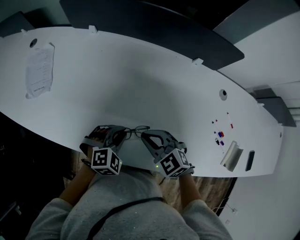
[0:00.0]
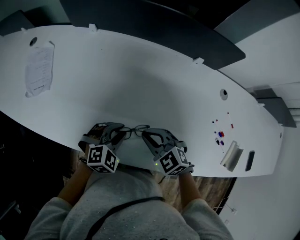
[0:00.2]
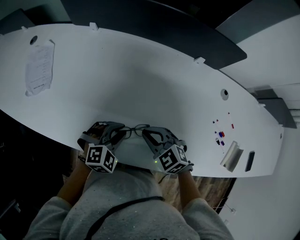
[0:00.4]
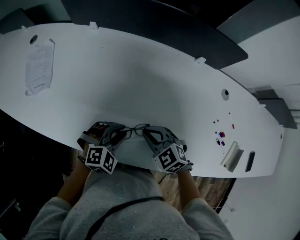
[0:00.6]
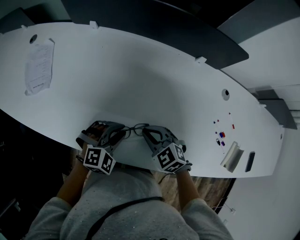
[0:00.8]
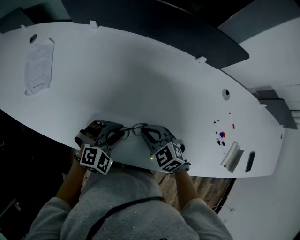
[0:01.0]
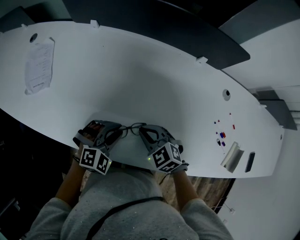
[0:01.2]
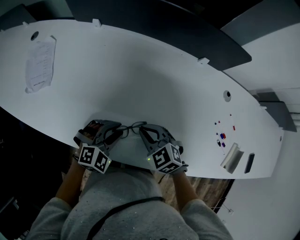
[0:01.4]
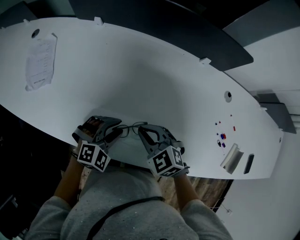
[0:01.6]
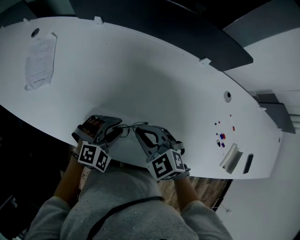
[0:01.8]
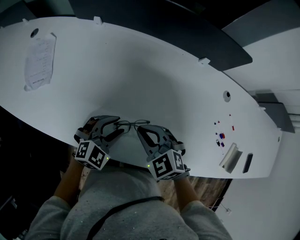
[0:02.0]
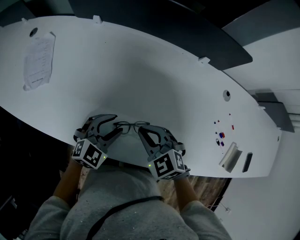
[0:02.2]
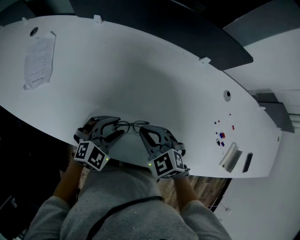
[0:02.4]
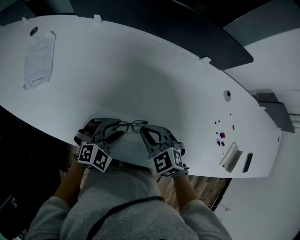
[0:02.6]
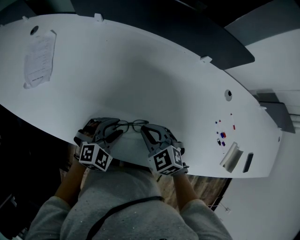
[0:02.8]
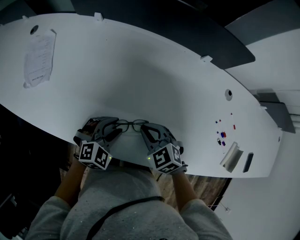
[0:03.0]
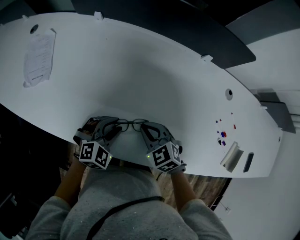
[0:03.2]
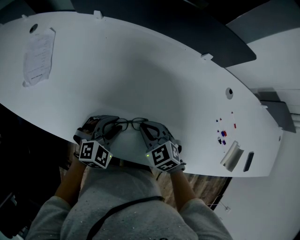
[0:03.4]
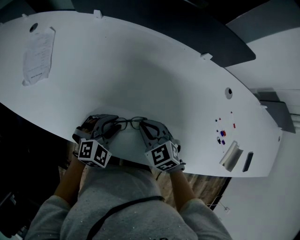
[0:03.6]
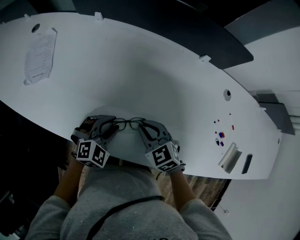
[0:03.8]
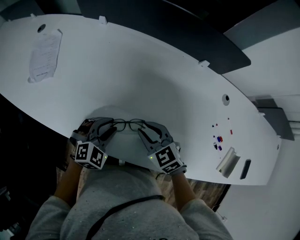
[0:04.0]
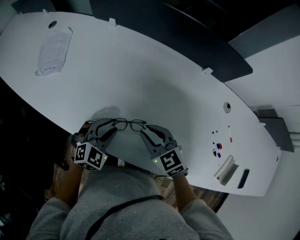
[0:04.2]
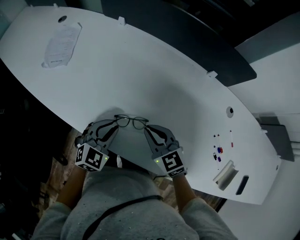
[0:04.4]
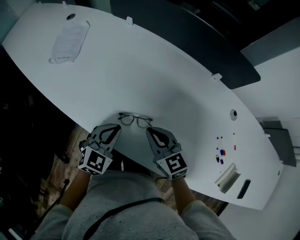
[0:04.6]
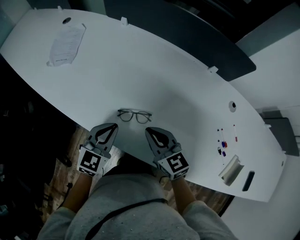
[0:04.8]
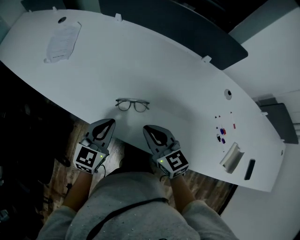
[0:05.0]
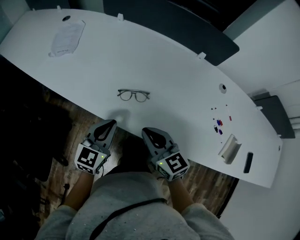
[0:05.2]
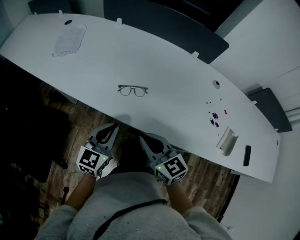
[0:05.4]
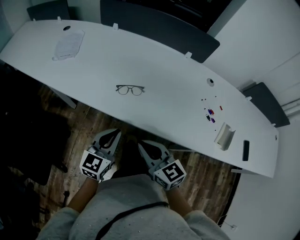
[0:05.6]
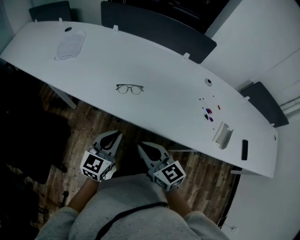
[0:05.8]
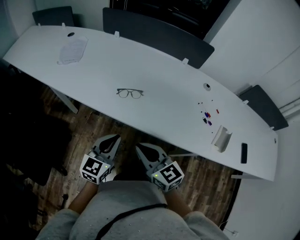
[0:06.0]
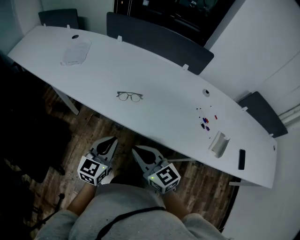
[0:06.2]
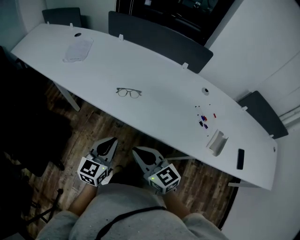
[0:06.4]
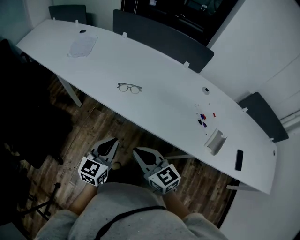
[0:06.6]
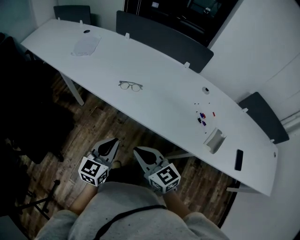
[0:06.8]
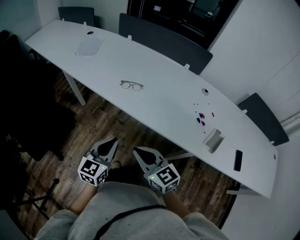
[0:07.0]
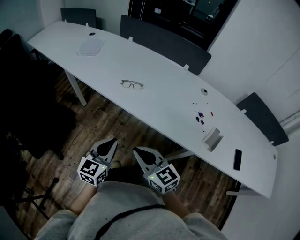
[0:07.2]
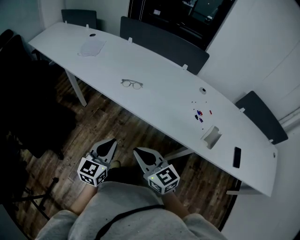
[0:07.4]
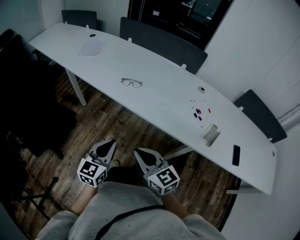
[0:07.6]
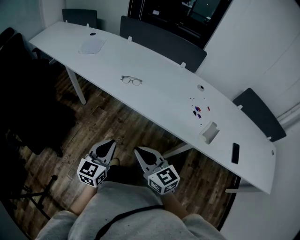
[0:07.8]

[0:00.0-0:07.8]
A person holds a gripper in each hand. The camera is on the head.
0:00.0 to 0:01.6: The left gripper opens up.
0:03.2 to 0:04.6: The left gripper travels upward and backward by roughly 10 cm, turns by approximately 30 degrees, and closes. Meanwhile the right gripper goes about 5 cm upward, and turns by about 30 degrees.
0:04.6 to 0:06.2: Both grippers travel together backward, roughly 30 cm. The left gripper turns by about 30 degrees.
0:06.2 to 0:07.8: Both grippers travel together backward, approximately 20 cm.

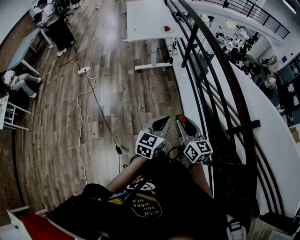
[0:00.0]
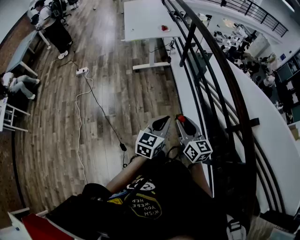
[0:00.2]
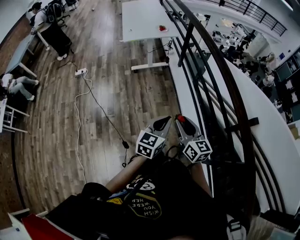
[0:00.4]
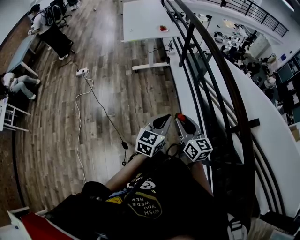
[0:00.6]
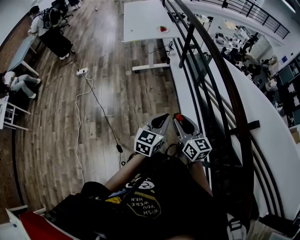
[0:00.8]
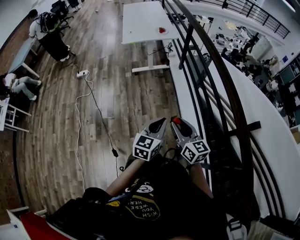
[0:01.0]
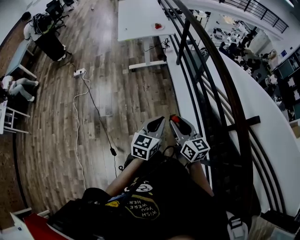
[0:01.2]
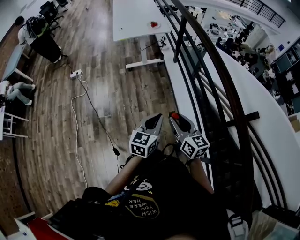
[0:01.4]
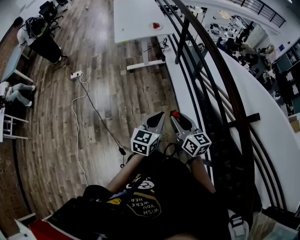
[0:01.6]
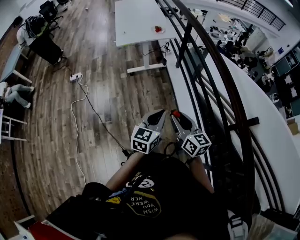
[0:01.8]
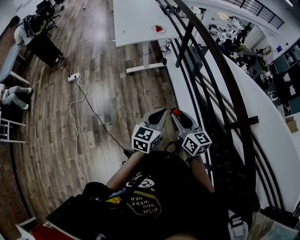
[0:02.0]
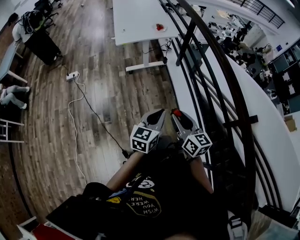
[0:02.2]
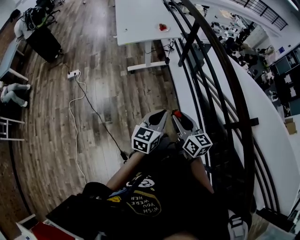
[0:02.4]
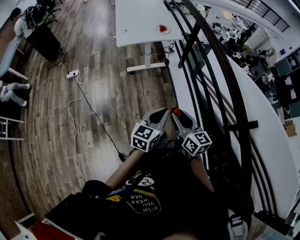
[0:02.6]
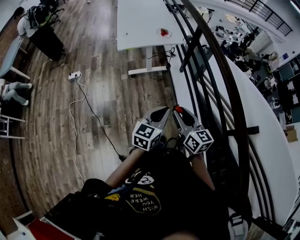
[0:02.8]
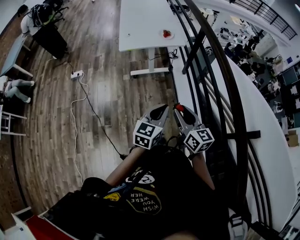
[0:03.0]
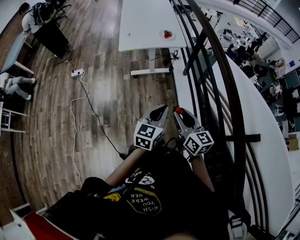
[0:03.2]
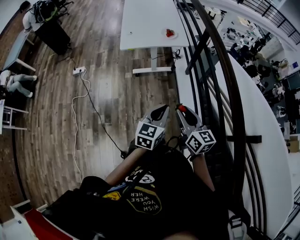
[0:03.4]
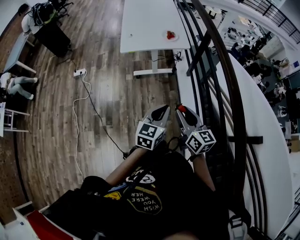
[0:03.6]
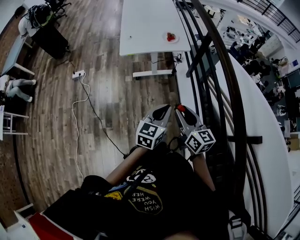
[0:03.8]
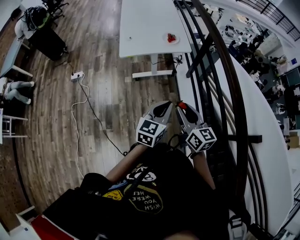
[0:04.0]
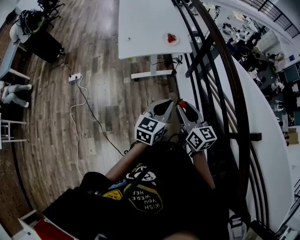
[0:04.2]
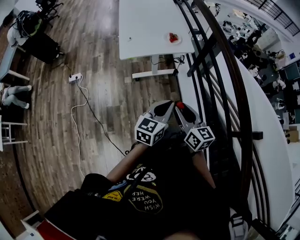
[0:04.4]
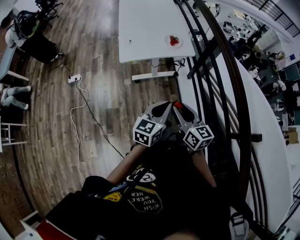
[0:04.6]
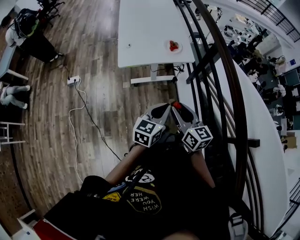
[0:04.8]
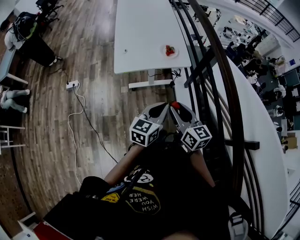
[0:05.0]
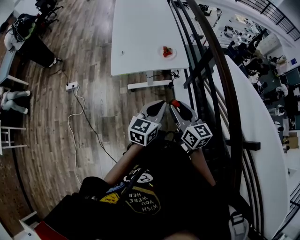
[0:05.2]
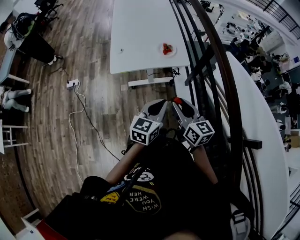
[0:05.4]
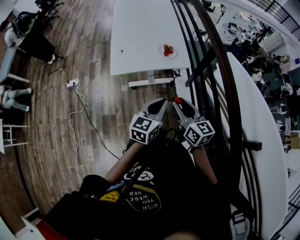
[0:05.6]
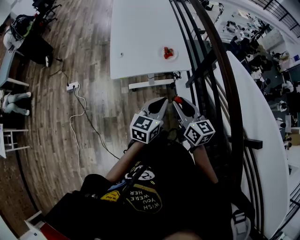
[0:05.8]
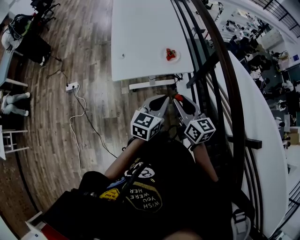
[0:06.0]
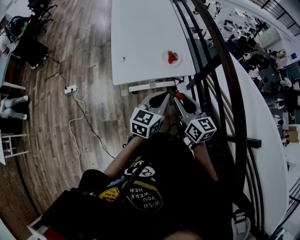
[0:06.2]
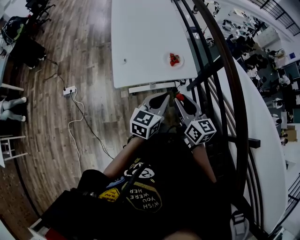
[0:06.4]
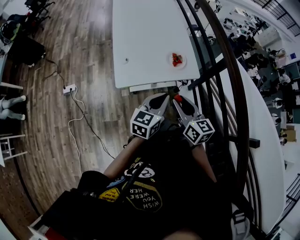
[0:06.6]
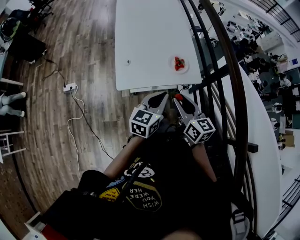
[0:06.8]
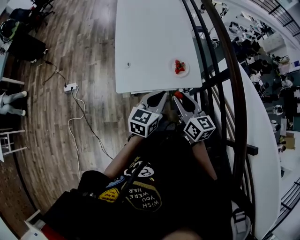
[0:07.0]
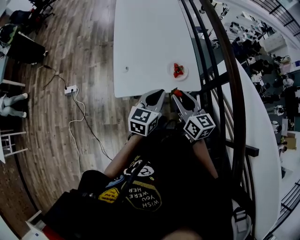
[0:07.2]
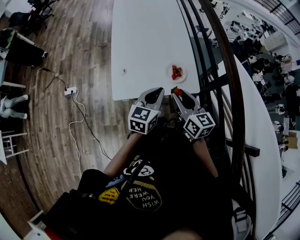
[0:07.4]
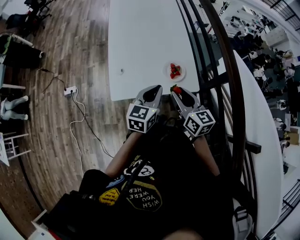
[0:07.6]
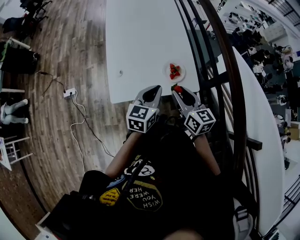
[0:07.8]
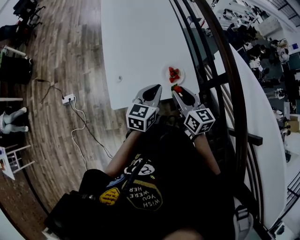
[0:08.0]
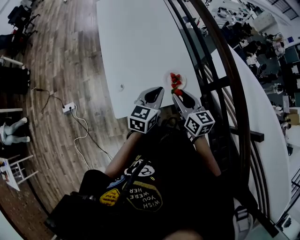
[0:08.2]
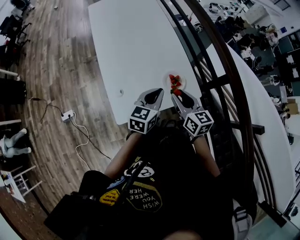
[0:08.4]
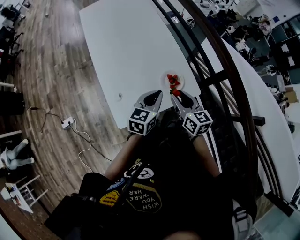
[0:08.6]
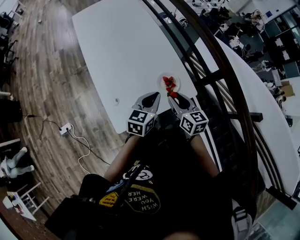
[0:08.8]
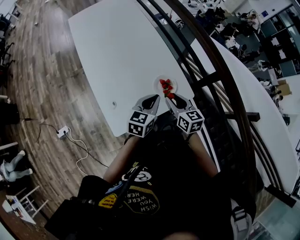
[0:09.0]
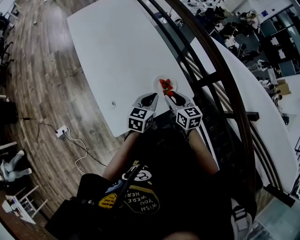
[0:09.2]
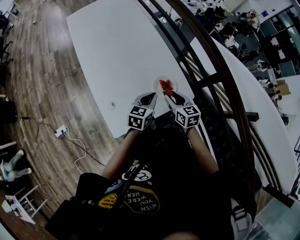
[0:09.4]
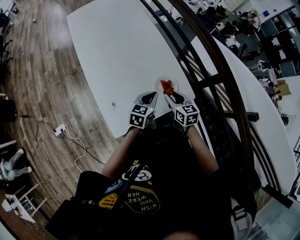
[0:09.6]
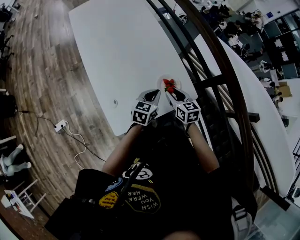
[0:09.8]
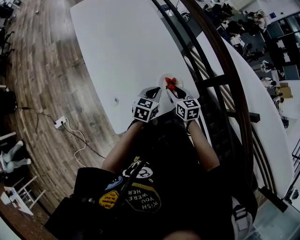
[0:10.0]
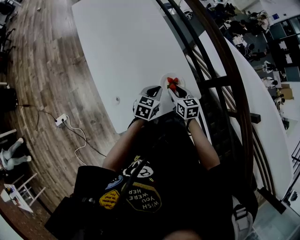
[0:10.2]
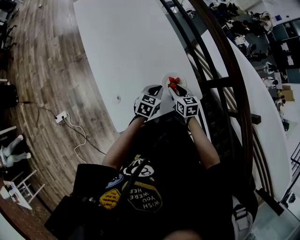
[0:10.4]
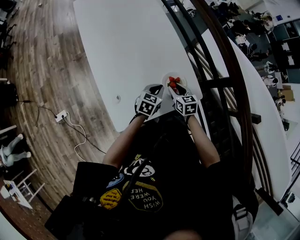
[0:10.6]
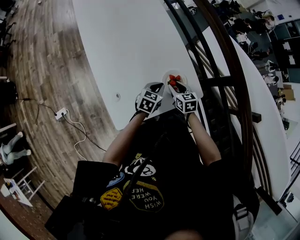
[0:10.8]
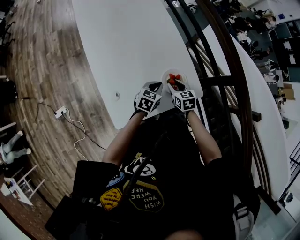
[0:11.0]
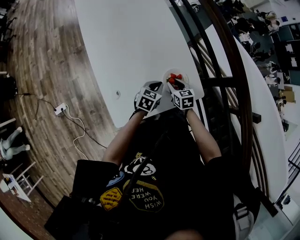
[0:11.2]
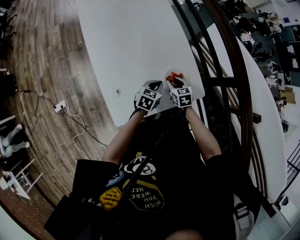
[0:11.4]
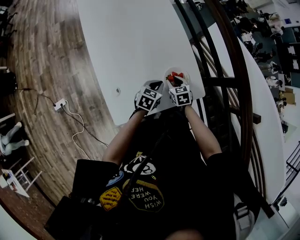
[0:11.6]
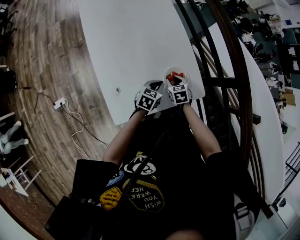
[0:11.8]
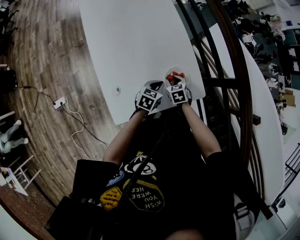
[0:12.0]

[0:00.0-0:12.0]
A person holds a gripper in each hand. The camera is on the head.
0:00.0 to 0:01.6: The two grippers go some 10 cm forward.
0:01.6 to 0:03.0: The grippers both shift forward by about 20 cm.
0:03.0 to 0:04.4: The grippers both shift forward by some 15 cm.
0:04.4 to 0:06.0: Both grippers move forward, some 20 cm.
0:06.0 to 0:07.6: The grippers both shift forward by approximately 20 cm.
0:07.6 to 0:09.0: Both grippers move forward and downward, some 10 cm. The left gripper changes its angle by roughly 20 degrees. The right gripper rotates roughly 20 degrees.
0:09.0 to 0:10.4: The left gripper goes approximately 15 cm downward. The right gripper moves downward and forward, about 15 cm.
0:10.4 to 0:12.0: The right gripper shifts some 10 cm downward, and changes its angle by some 30 degrees.

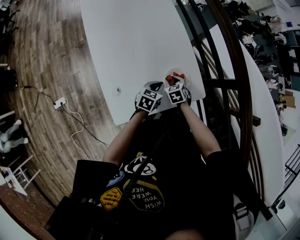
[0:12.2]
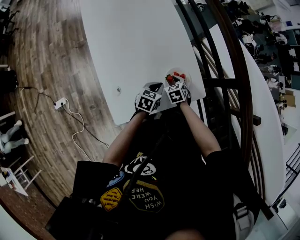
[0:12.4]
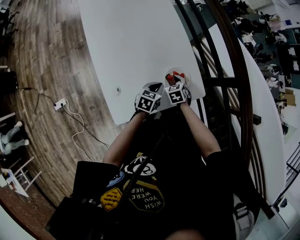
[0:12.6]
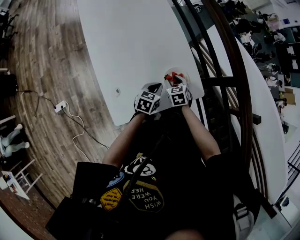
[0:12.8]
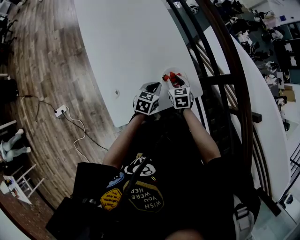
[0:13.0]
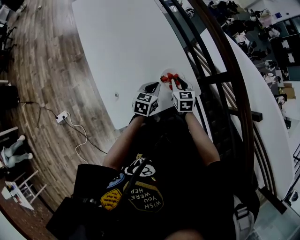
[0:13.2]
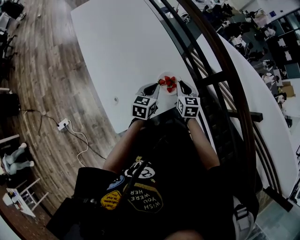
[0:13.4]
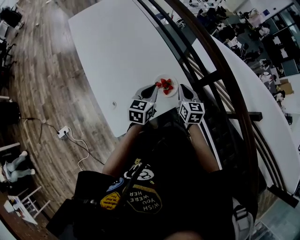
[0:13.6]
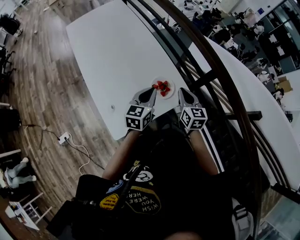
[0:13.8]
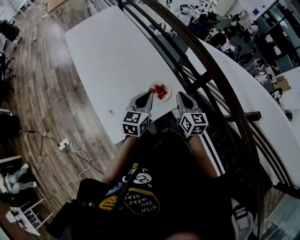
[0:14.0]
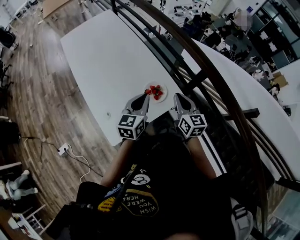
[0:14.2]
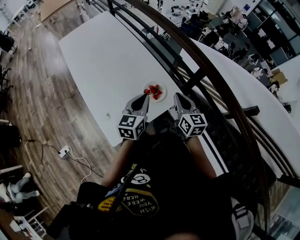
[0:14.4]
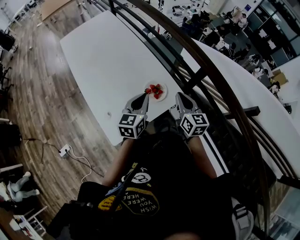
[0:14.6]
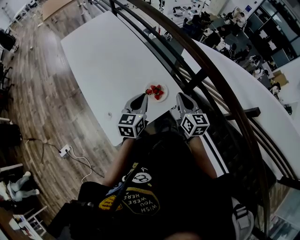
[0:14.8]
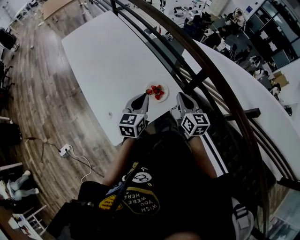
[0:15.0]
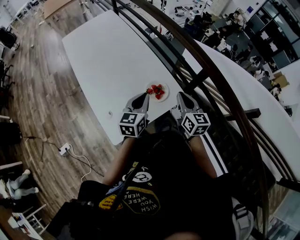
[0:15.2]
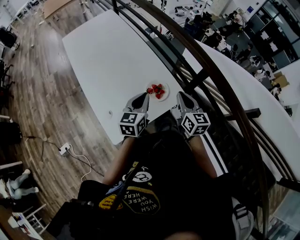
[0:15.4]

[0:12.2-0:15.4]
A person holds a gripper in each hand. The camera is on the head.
0:12.2 to 0:13.8: The right gripper goes roughly 25 cm upward and to the right, angles its fingers upward, by about 40 degrees, and closes up. The left gripper moves upward, some 20 cm, and changes its angle by roughly 20 degrees.
0:13.8 to 0:15.4: The right gripper shifts by some 5 cm.

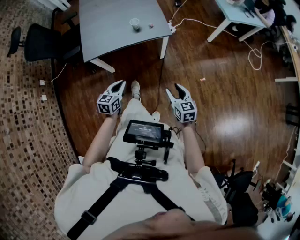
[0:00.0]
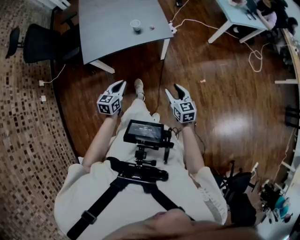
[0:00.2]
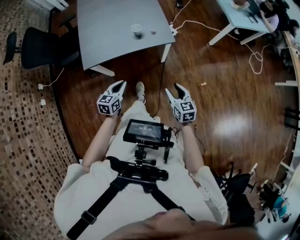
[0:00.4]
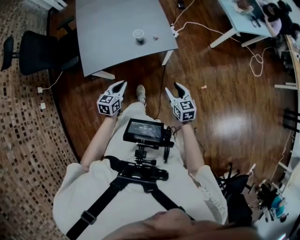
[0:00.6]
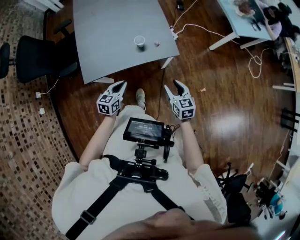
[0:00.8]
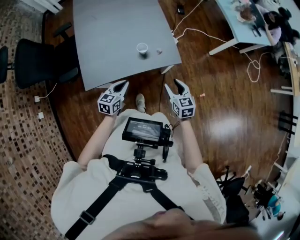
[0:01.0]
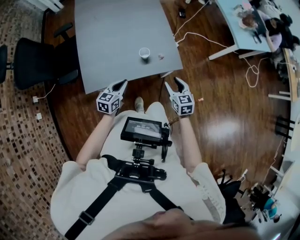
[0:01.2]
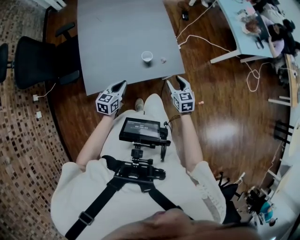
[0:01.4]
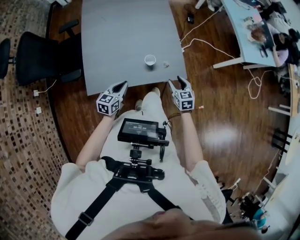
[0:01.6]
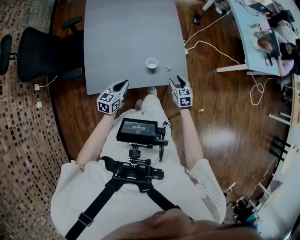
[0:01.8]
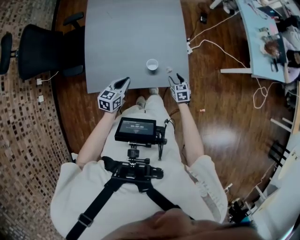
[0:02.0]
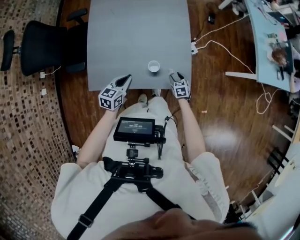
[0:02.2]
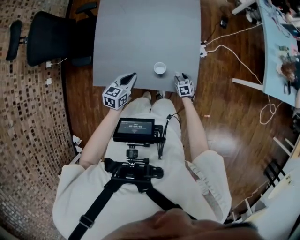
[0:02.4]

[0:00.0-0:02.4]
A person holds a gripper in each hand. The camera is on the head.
0:00.0 to 0:01.2: The two grippers go some 30 cm forward.
0:01.2 to 0:02.4: The left gripper heads forward, covering about 15 cm, while the right gripper goes approximately 35 cm downward and forward, and changes its angle by some 30 degrees.
